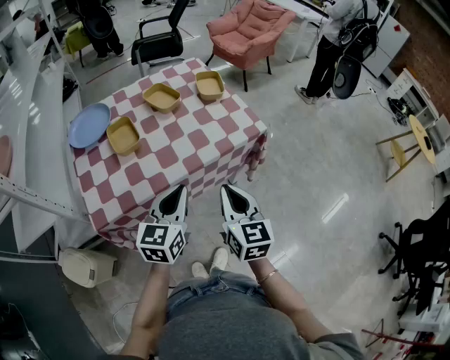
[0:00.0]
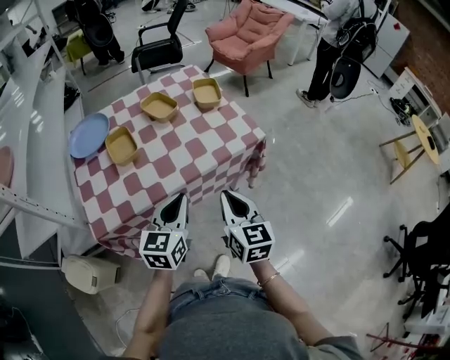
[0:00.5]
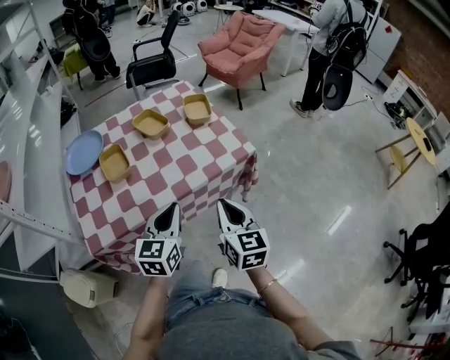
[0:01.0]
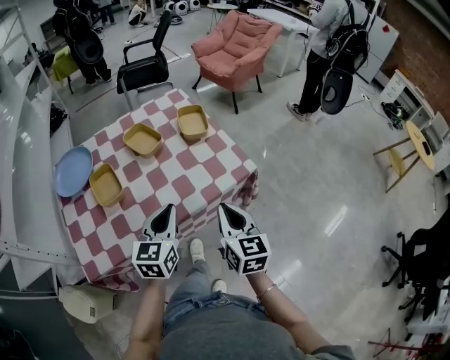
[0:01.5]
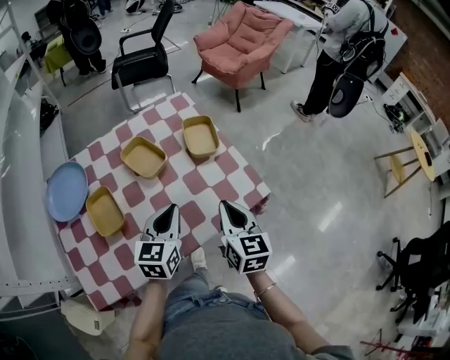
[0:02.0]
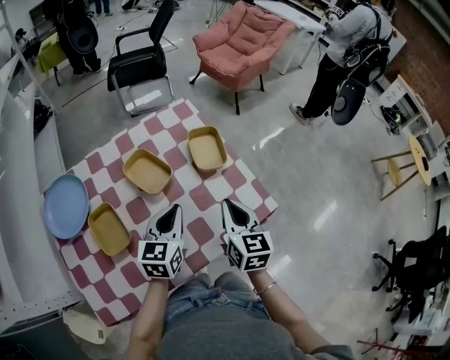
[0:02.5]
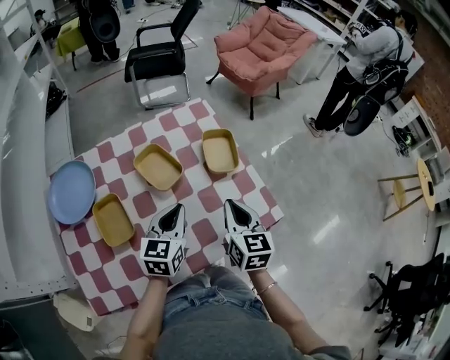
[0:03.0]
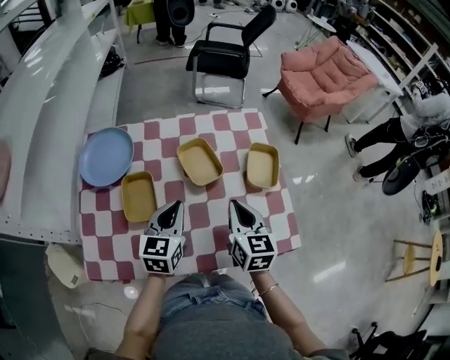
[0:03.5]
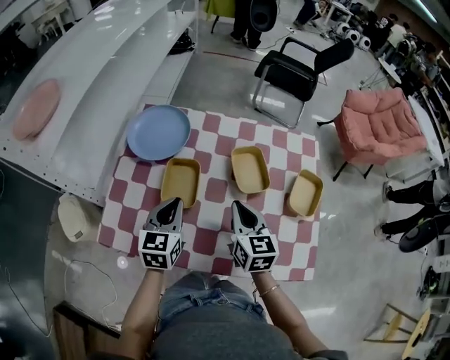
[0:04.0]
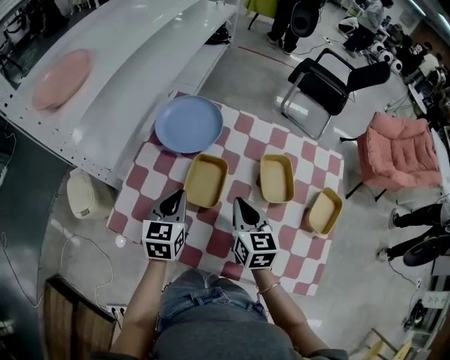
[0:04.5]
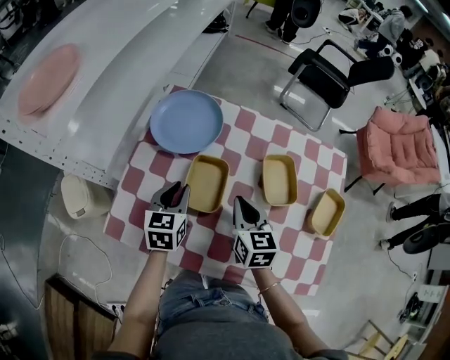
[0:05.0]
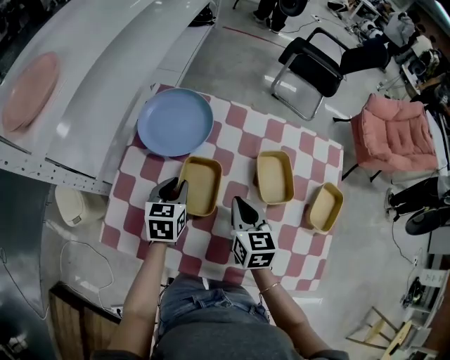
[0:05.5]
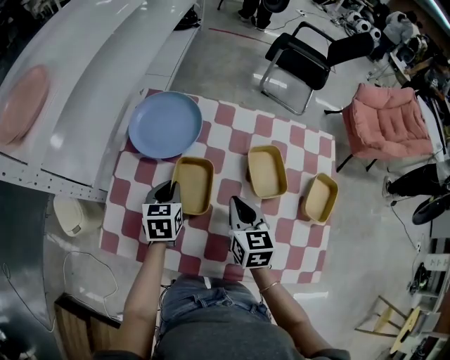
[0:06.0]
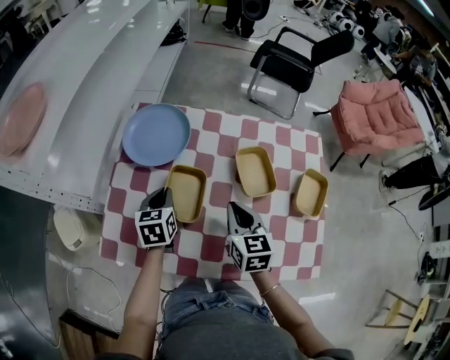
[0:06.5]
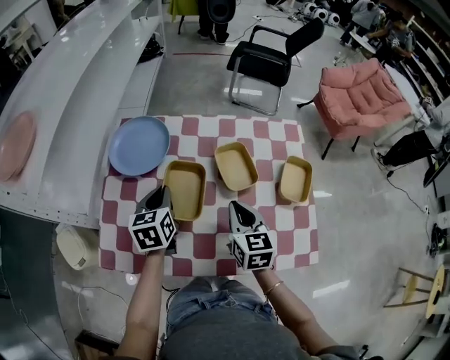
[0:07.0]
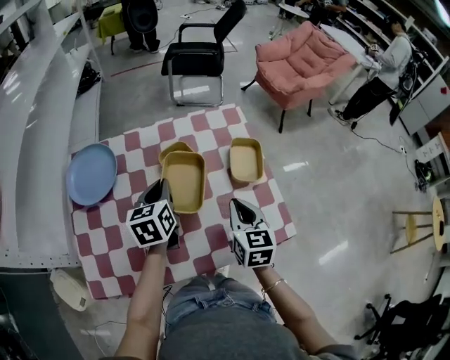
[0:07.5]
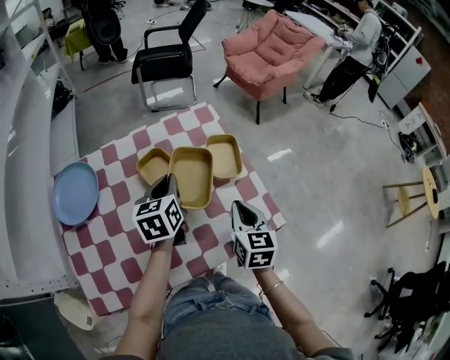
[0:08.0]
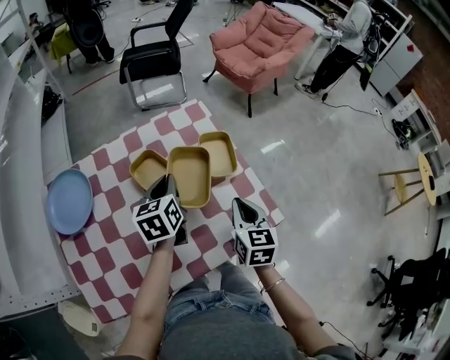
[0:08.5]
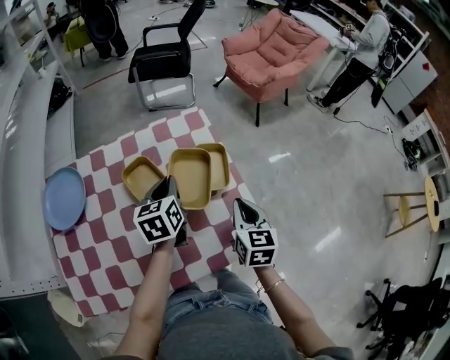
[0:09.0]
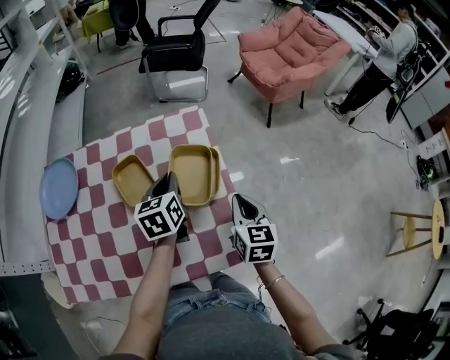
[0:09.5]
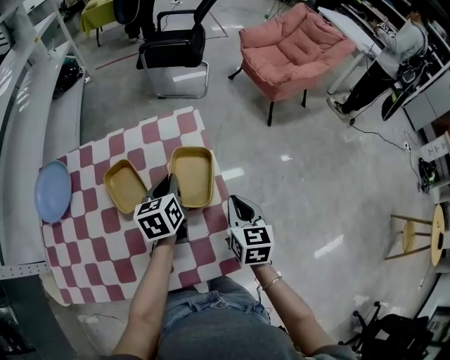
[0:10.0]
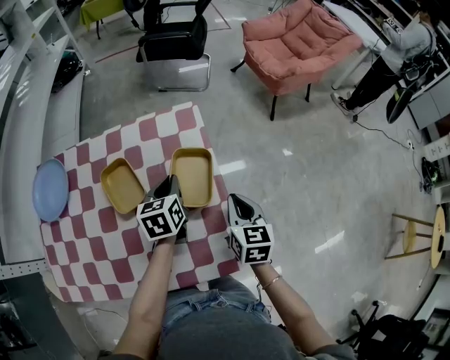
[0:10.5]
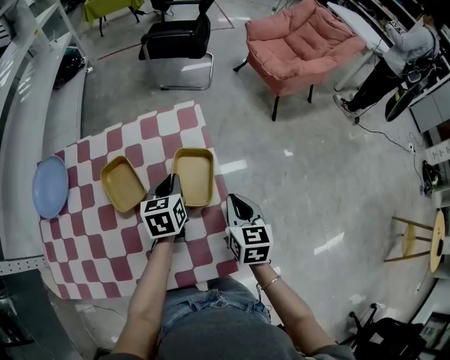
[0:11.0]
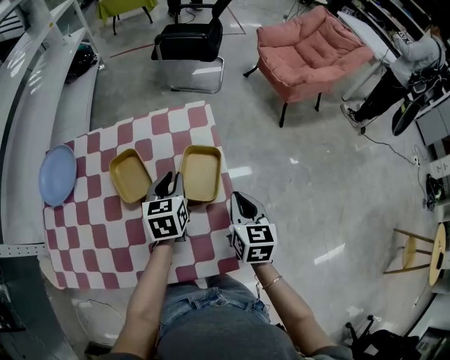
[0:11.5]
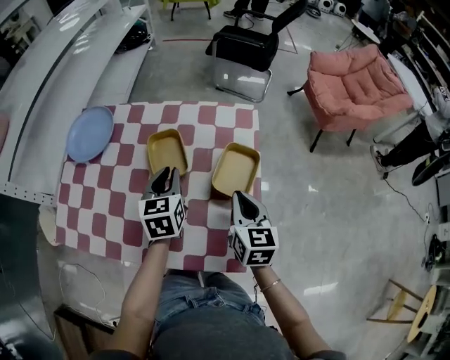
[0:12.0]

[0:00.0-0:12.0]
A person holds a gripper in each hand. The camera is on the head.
0.0 to 2.0 s: The two grippers go roughly 25 cm forward.
2.0 to 4.0 s: The left gripper ends up about 20 cm from where it was, and changes its angle by about 40 degrees. Meanwhile the right gripper changes place by approximately 25 cm, and changes its angle by about 40 degrees.
4.0 to 6.0 s: The left gripper is displaced downward, forward and to the left by some 15 cm; the right gripper is displaced to the left and forward by roughly 5 cm.
6.0 to 8.0 s: The left gripper changes place by about 30 cm, and turns by about 30 degrees. The right gripper changes place by some 30 cm, and changes its angle by some 40 degrees.
8.0 to 10.0 s: The left gripper heads to the right, forward and downward, covering roughly 15 cm. Meanwhile the right gripper moves forward and to the right, some 20 cm.
10.0 to 12.0 s: The left gripper shifts approximately 15 cm to the left and backward, and changes its angle by some 20 degrees. The right gripper heads to the left, covering about 10 cm.

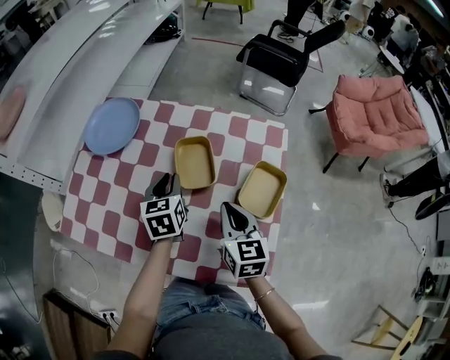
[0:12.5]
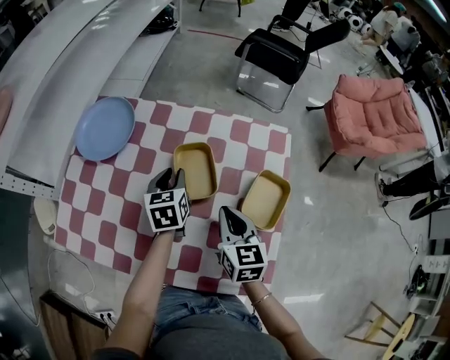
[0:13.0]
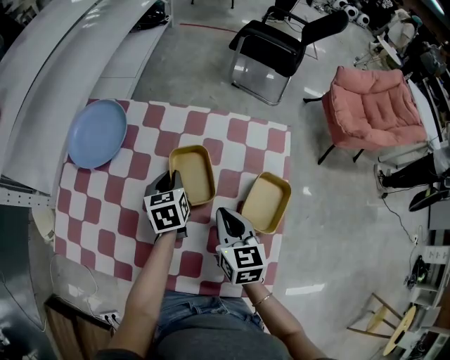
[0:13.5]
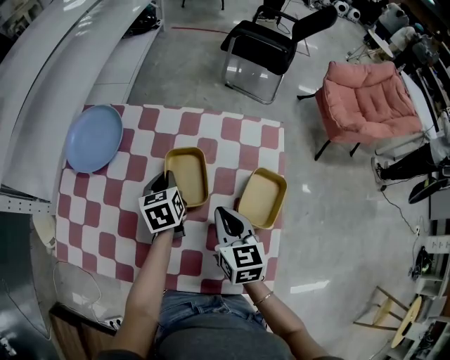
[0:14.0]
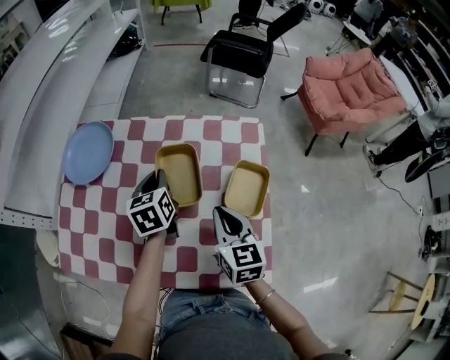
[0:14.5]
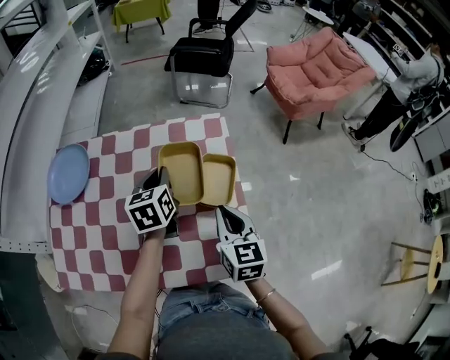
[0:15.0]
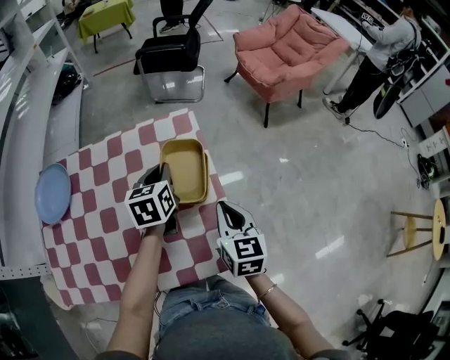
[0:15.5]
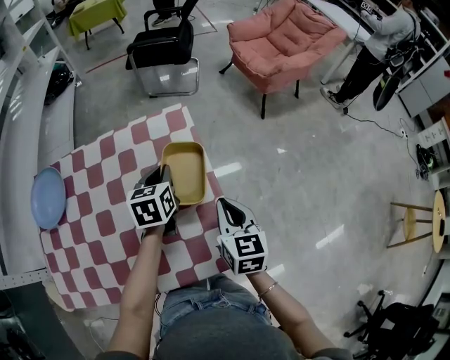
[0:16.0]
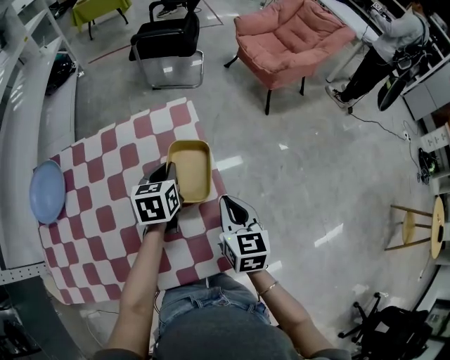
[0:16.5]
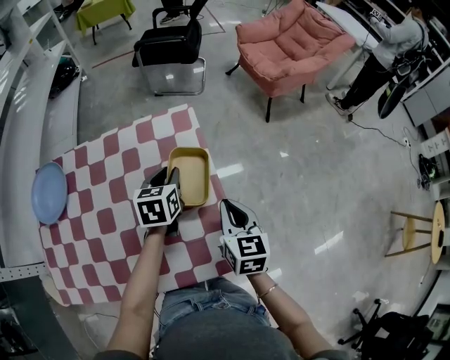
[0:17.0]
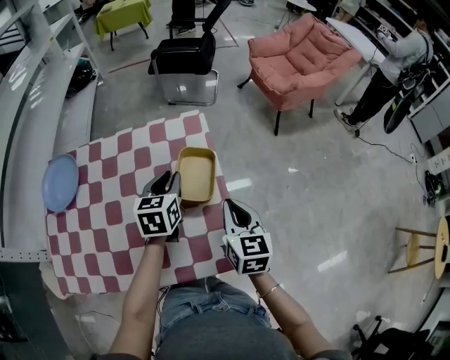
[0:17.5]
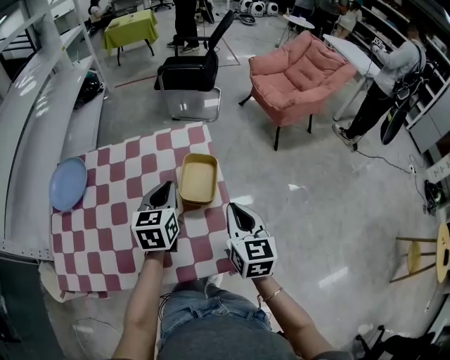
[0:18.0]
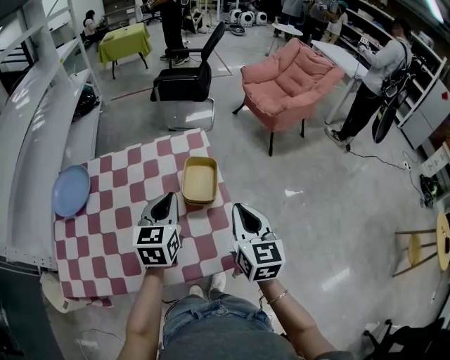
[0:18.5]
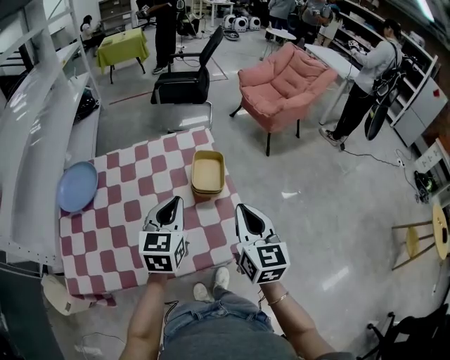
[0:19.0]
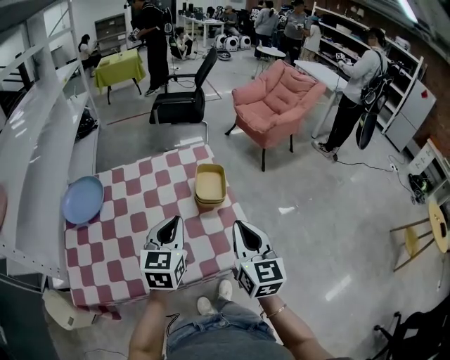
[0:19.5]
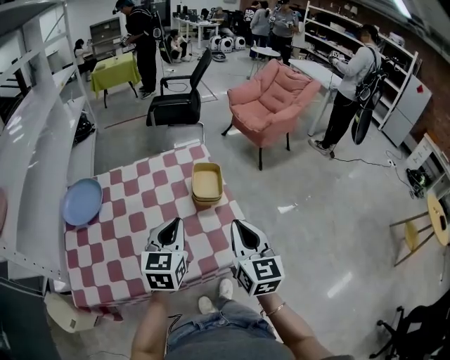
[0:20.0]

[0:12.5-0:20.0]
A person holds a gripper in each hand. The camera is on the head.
12.5 to 14.5 s: The left gripper heads forward, covering some 5 cm.
14.5 to 16.5 s: The right gripper shifts by approximately 20 cm, and changes its angle by some 20 degrees. Meanwhile the left gripper ends up some 25 cm from where it was, and turns by approximately 30 degrees.
16.5 to 18.0 s: The left gripper moves upward and backward, some 10 cm, while the right gripper goes roughly 5 cm upward.
18.0 to 20.0 s: The left gripper is displaced backward by roughly 15 cm. Meanwhile the right gripper heads backward and upward, covering some 15 cm.

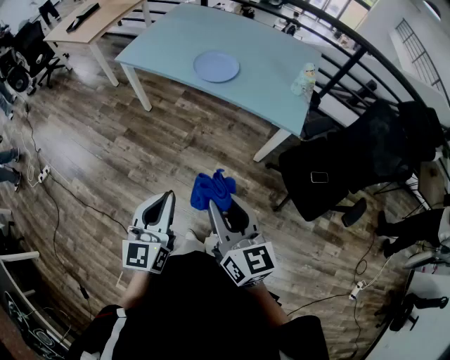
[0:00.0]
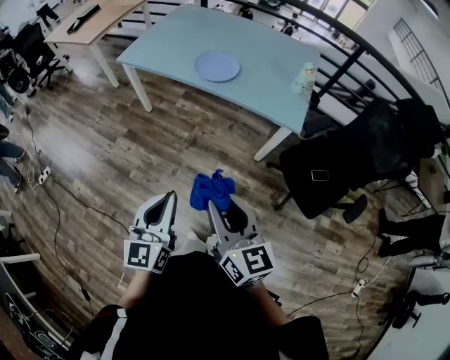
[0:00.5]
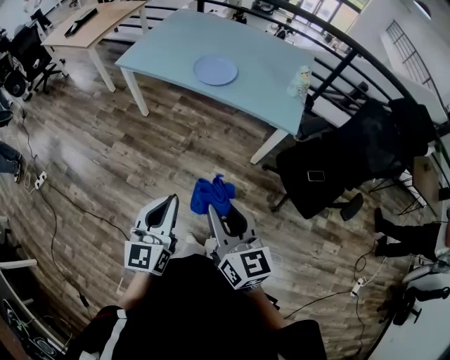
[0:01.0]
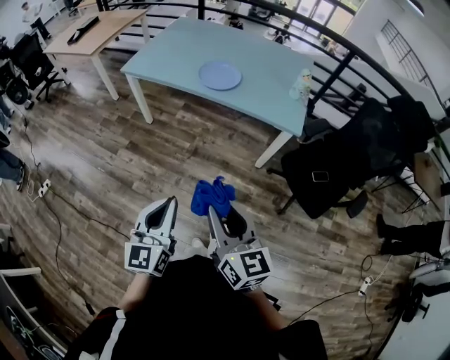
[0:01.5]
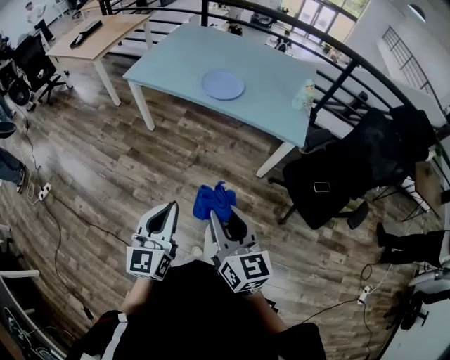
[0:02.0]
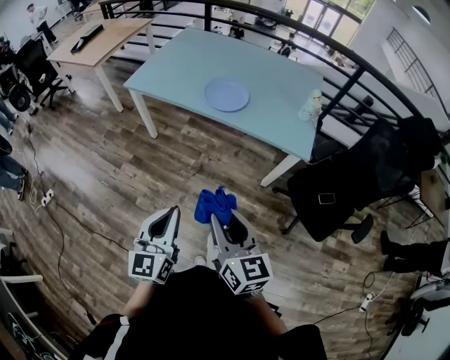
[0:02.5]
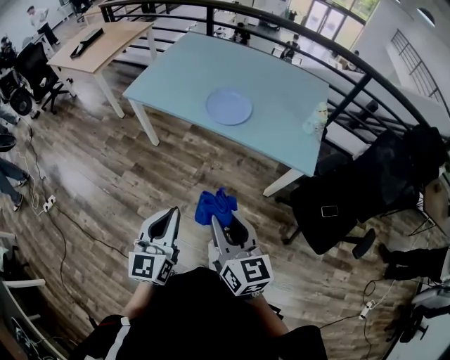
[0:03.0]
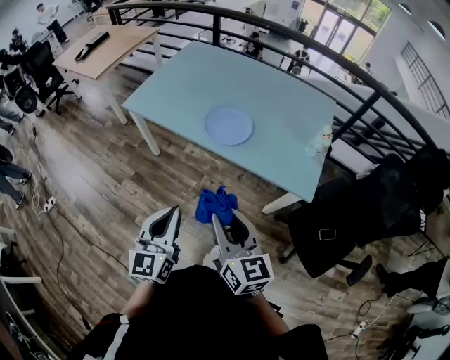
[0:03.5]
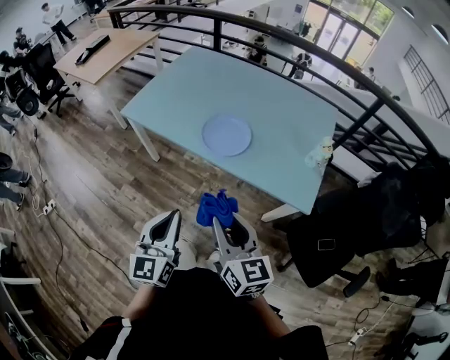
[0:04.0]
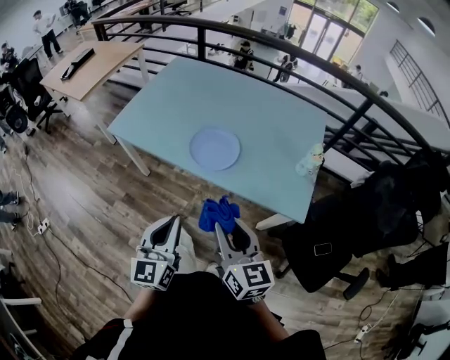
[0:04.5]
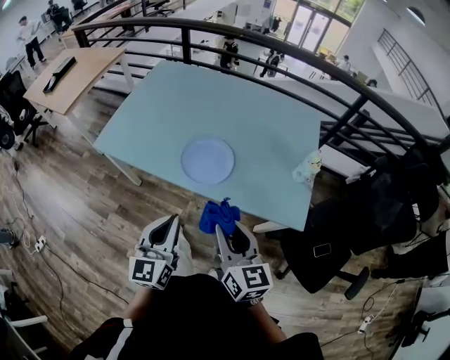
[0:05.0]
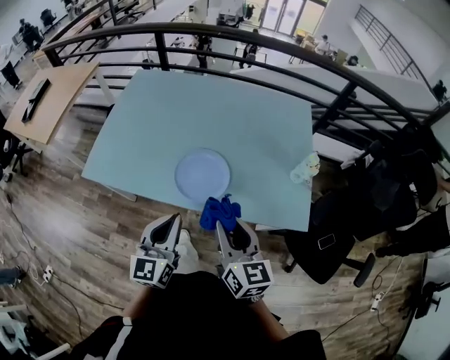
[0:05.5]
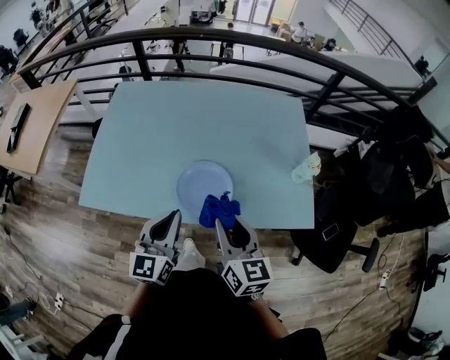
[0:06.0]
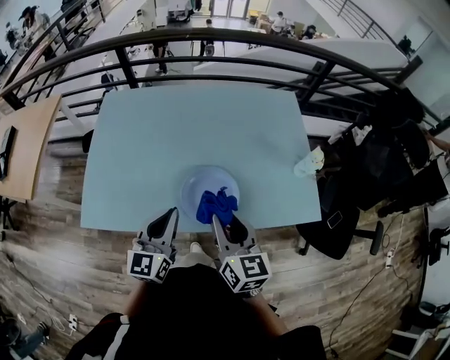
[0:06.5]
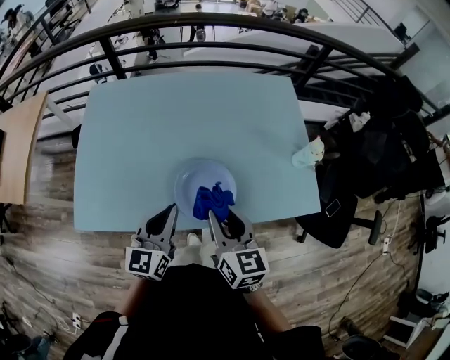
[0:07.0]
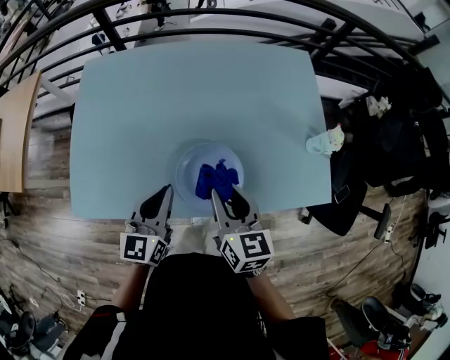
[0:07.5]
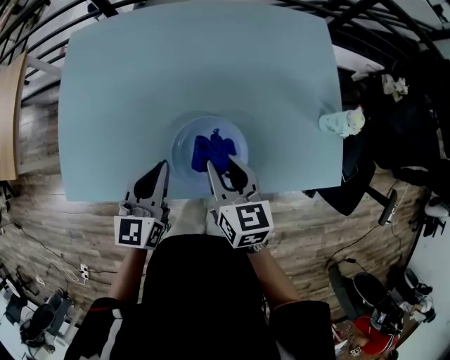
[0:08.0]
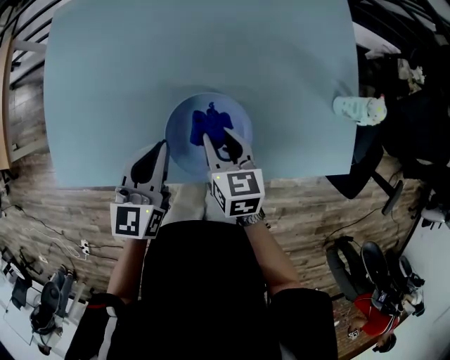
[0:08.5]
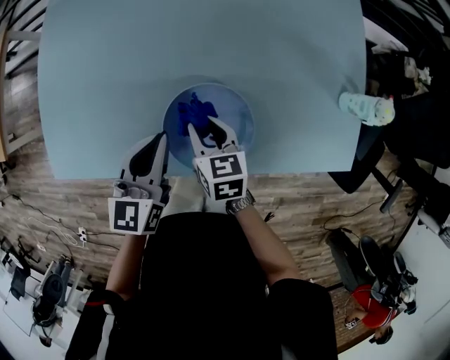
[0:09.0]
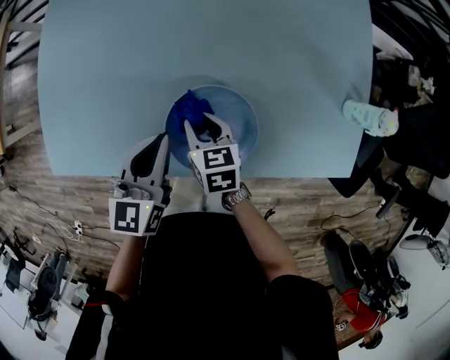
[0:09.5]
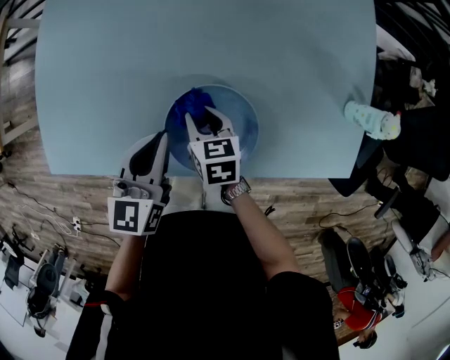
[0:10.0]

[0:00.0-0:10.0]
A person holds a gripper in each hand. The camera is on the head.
0.0 to 2.0 s: Both grippers travel together to the left, some 5 cm.
2.0 to 4.0 s: Both grippers move forward, approximately 25 cm.
4.0 to 6.0 s: The right gripper moves roughly 30 cm, and changes its angle by about 30 degrees. The left gripper changes place by roughly 35 cm, and turns by some 30 degrees.
6.0 to 8.0 s: Both grippers travel together forward and downward, approximately 20 cm.
8.0 to 10.0 s: The right gripper goes about 15 cm downward, and swivels approximately 20 degrees; the left gripper heads downward, covering some 5 cm.
